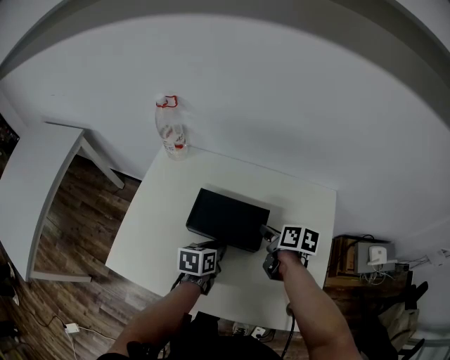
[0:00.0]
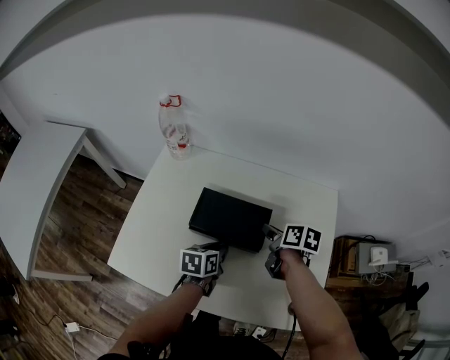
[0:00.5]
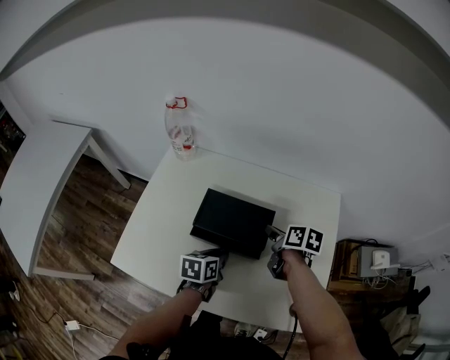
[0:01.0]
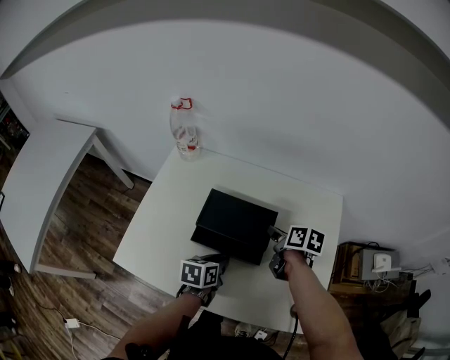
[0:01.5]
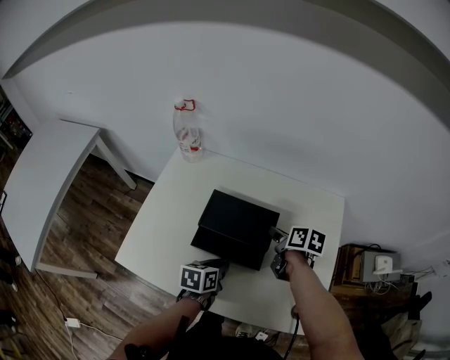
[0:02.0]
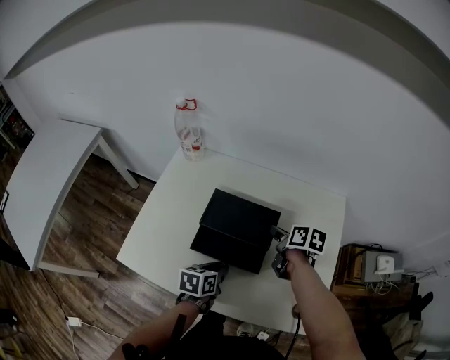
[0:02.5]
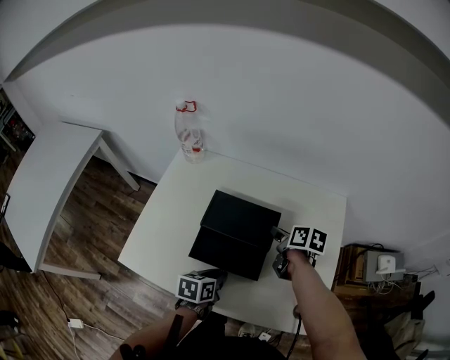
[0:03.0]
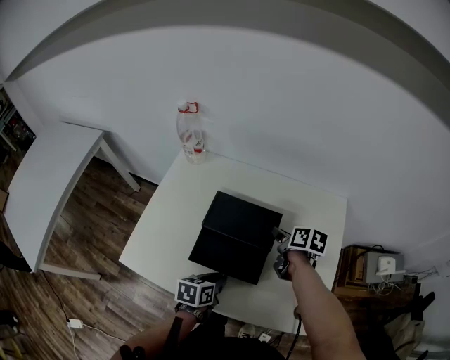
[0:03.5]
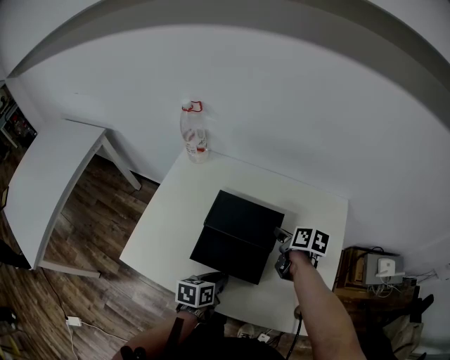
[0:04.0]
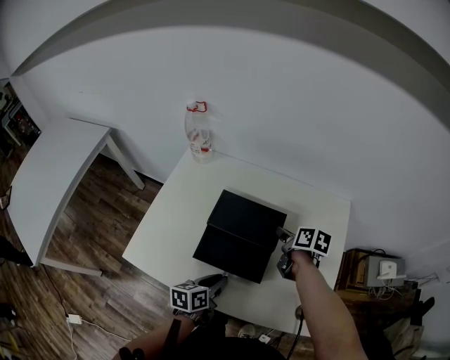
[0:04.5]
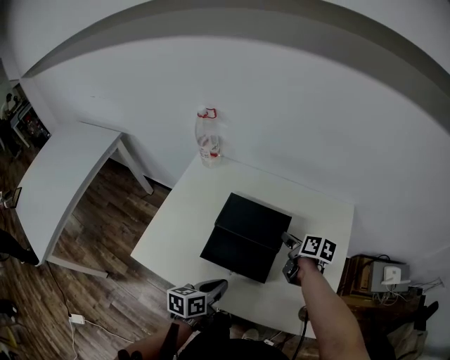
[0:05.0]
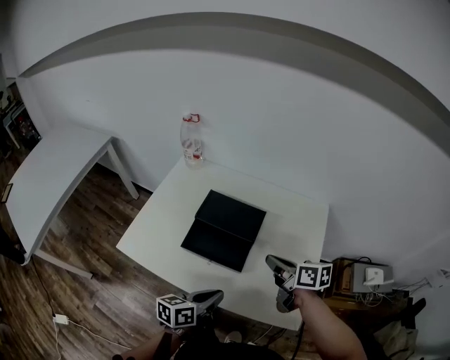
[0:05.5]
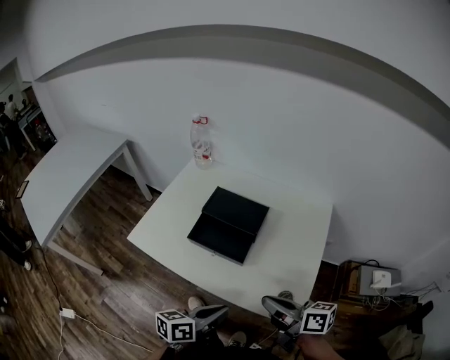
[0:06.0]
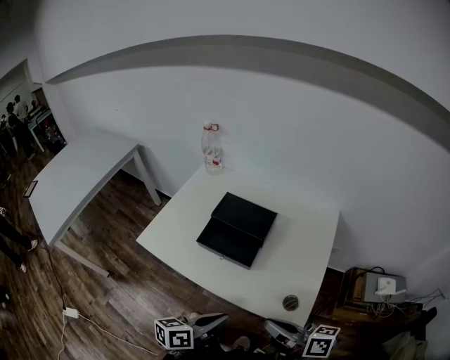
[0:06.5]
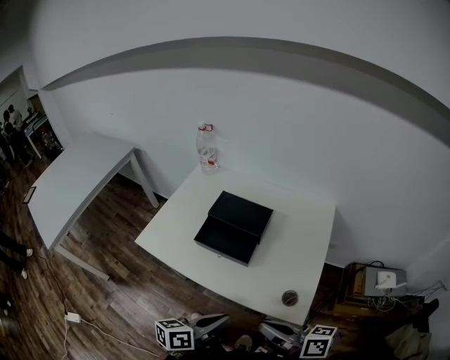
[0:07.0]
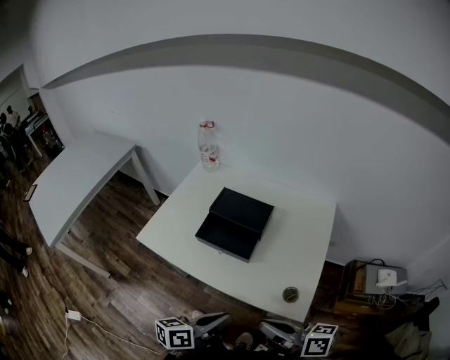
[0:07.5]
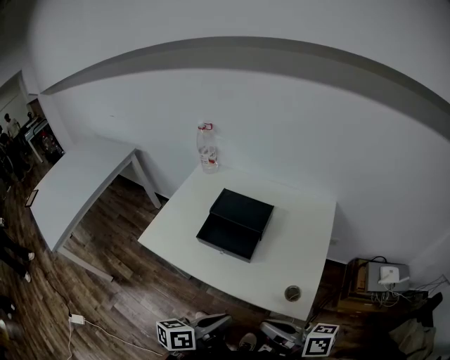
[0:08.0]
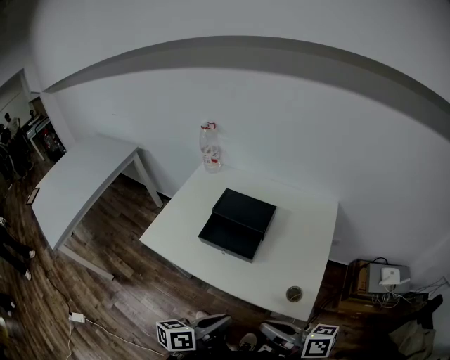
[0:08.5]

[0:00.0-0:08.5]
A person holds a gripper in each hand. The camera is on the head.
0:00.0 to 0:02.0: The left gripper shifts about 5 cm backward.
0:02.0 to 0:04.0: There are only small adjustments of the grippers.
0:04.0 to 0:06.5: The right gripper is displaced backward and upward by approximately 40 cm, tips its fingers upward by roughly 40 degrees, and closes. The left gripper is displaced backward and upward by about 25 cm, and changes its angle by some 30 degrees.
0:06.5 to 0:08.5: The grippers make only small movements.

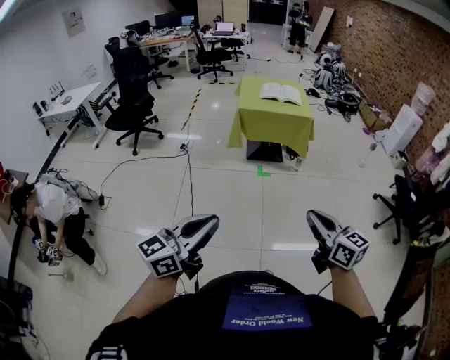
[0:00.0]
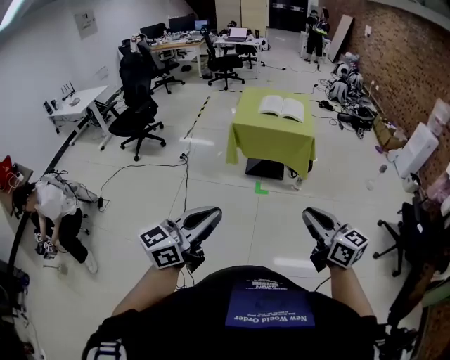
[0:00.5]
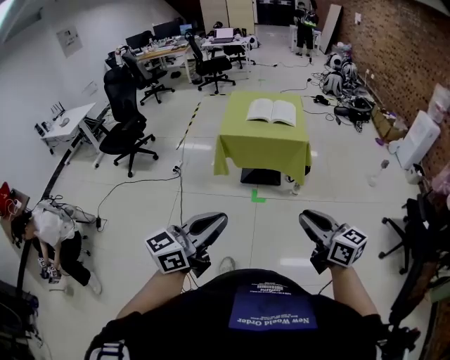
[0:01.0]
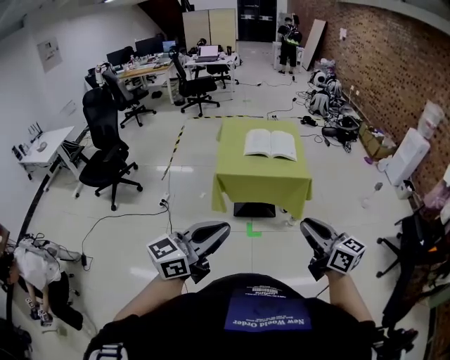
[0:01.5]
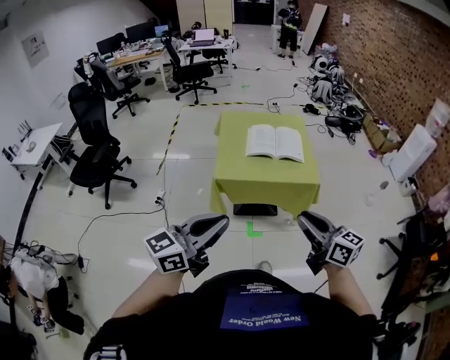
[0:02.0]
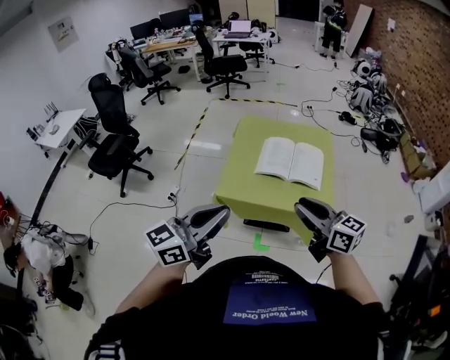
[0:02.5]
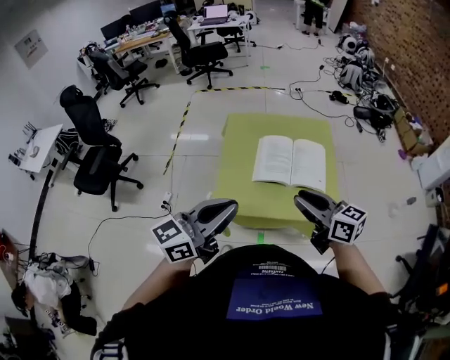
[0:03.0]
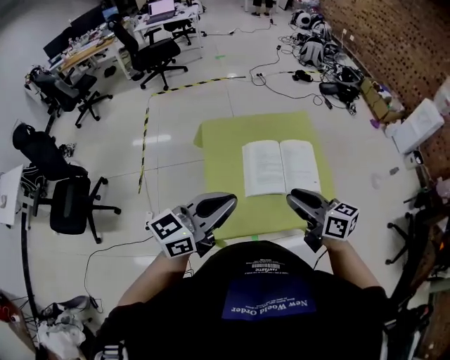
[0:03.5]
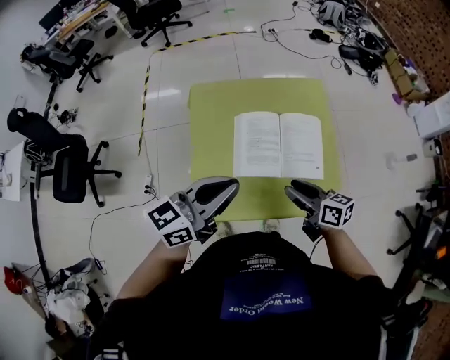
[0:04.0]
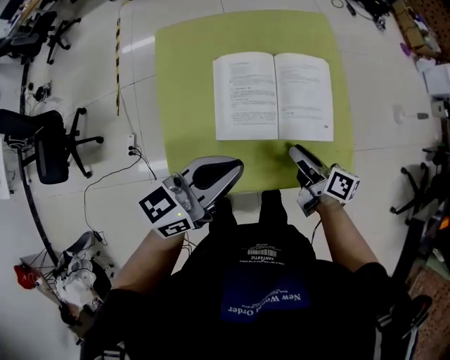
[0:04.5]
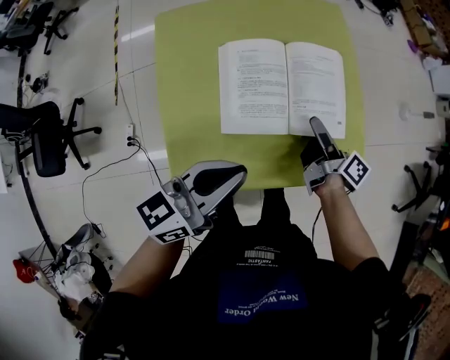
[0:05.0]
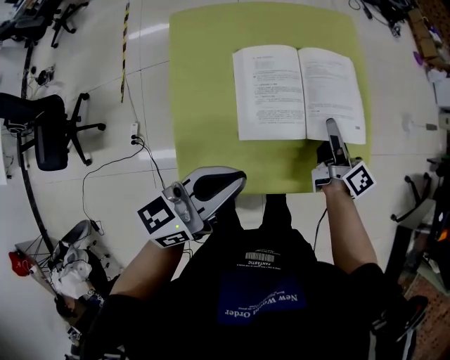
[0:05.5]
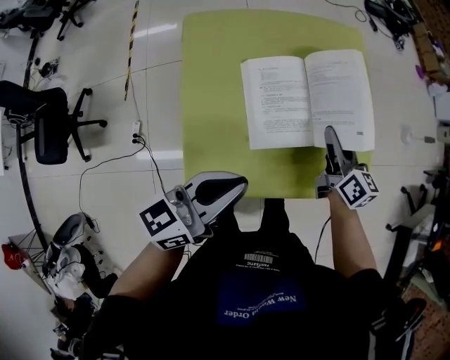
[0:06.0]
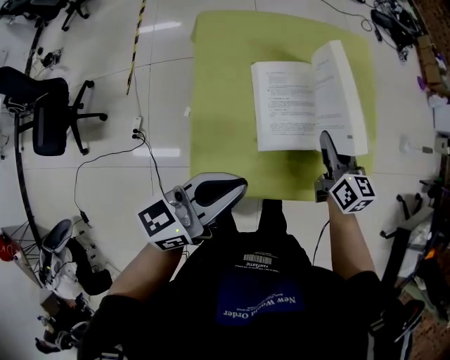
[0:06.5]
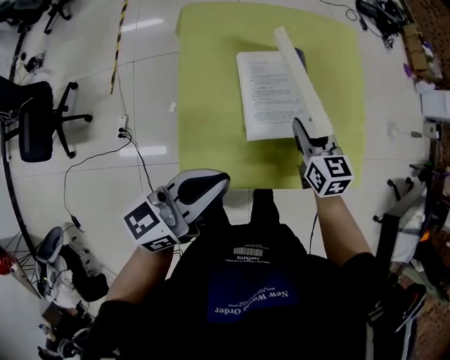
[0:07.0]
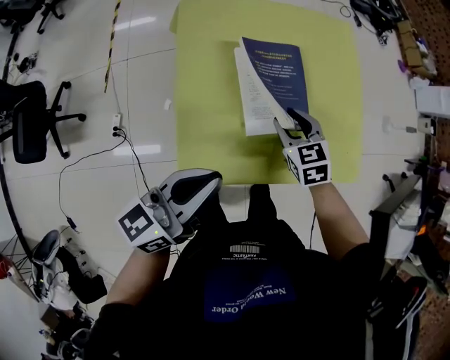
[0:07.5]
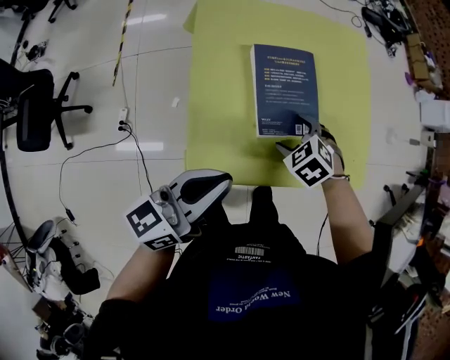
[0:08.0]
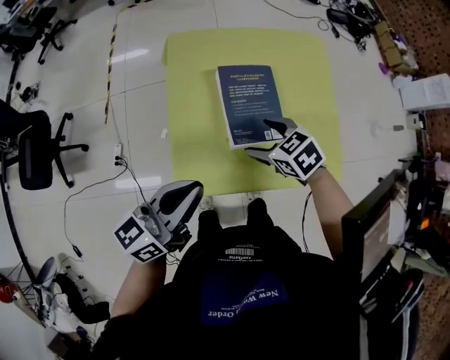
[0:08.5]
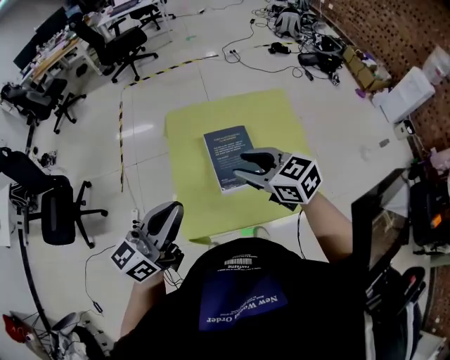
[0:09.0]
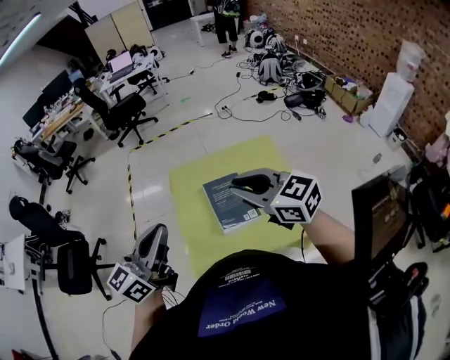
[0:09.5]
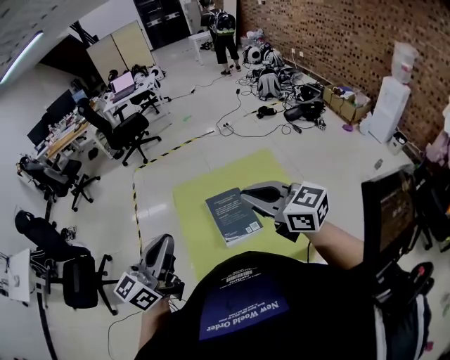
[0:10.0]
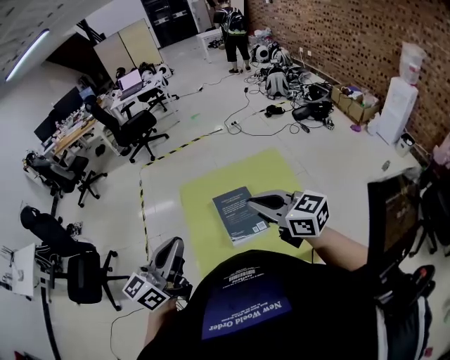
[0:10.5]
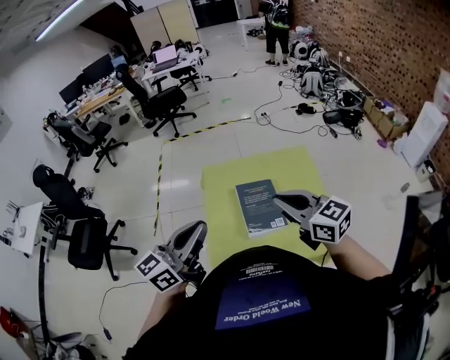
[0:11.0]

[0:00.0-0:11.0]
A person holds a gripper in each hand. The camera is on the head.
0:00.0 to 0:02.0: Both grippers are carried forward, some 60 cm.
0:02.0 to 0:03.5: The two grippers travel together, forward, roughly 40 cm.
0:03.5 to 0:05.5: The left gripper heads downward and to the right, covering about 20 cm. Meanwhile the right gripper shifts some 30 cm downward, forward and to the right, turns by roughly 40 degrees, and opens and closes again.
0:05.5 to 0:07.5: The right gripper shifts some 15 cm to the left, and rotates around the line of its fingers by about 70 degrees, counterclockwise from behind. Meanwhile the left gripper shifts about 10 cm to the left.
0:07.5 to 0:09.0: The right gripper goes about 25 cm upward, swivels roughly 30 degrees, and opens and closes again. Meanwhile the left gripper travels upward by approximately 15 cm.
0:09.0 to 0:11.0: The right gripper goes roughly 10 cm upward, and closes up.

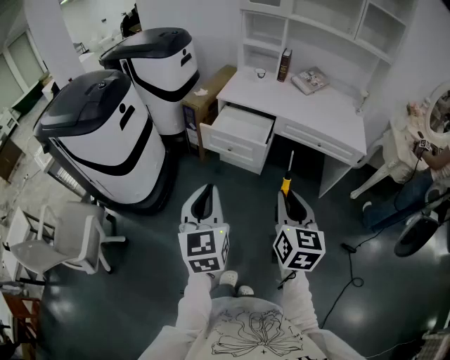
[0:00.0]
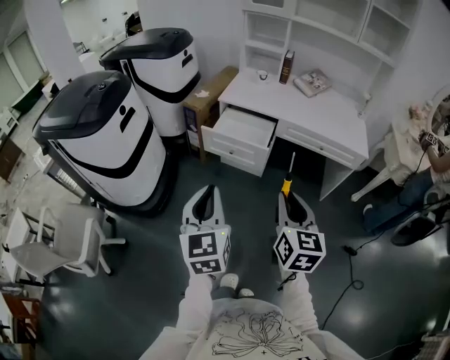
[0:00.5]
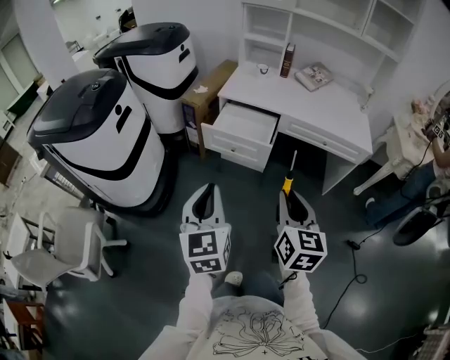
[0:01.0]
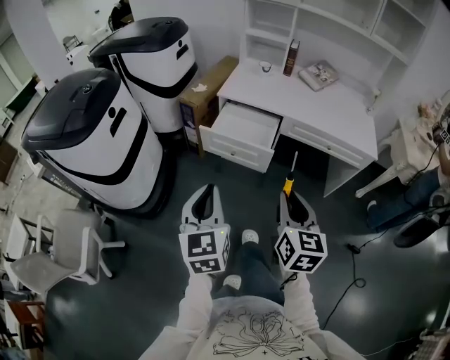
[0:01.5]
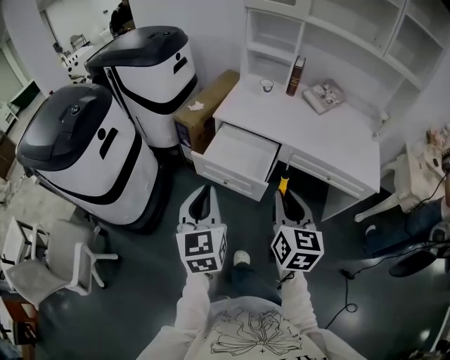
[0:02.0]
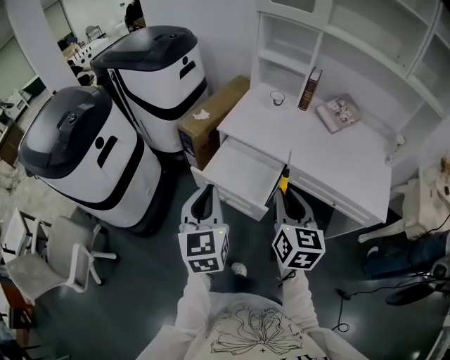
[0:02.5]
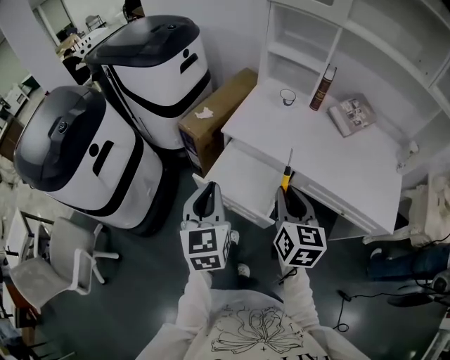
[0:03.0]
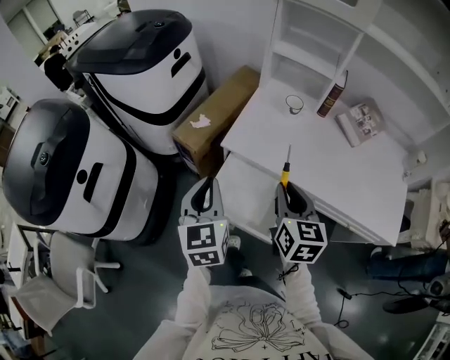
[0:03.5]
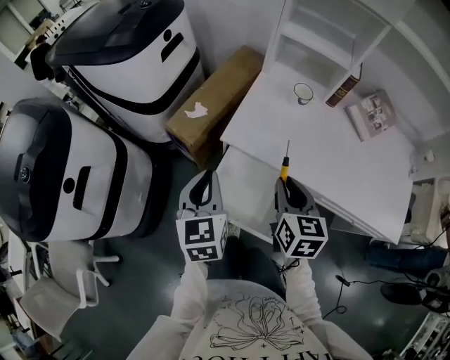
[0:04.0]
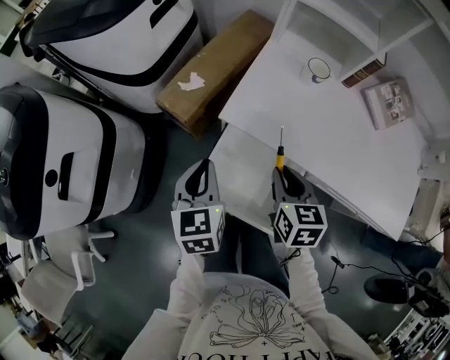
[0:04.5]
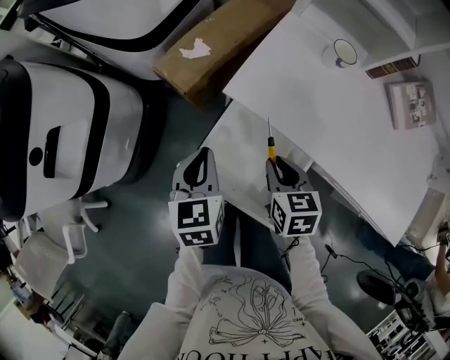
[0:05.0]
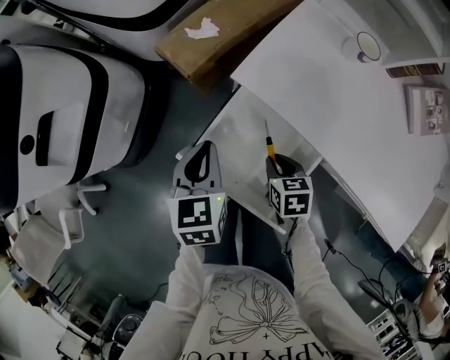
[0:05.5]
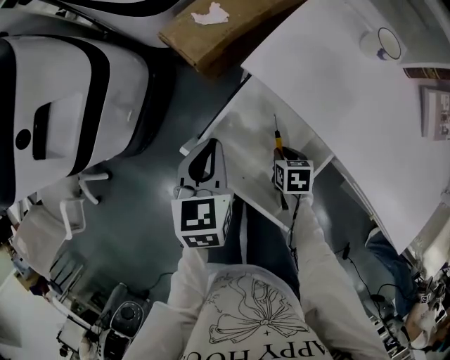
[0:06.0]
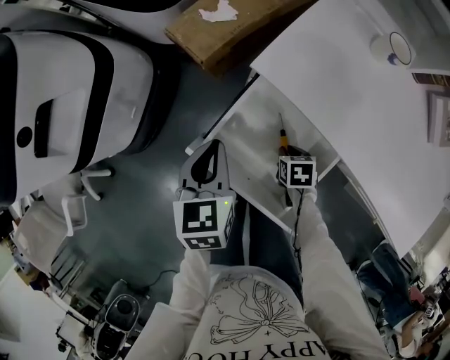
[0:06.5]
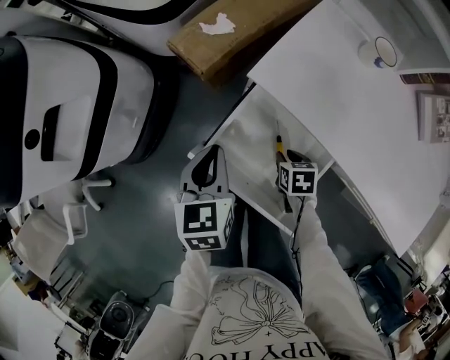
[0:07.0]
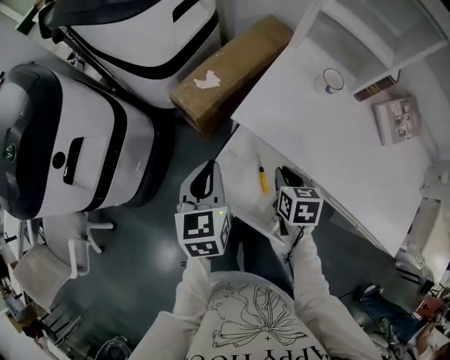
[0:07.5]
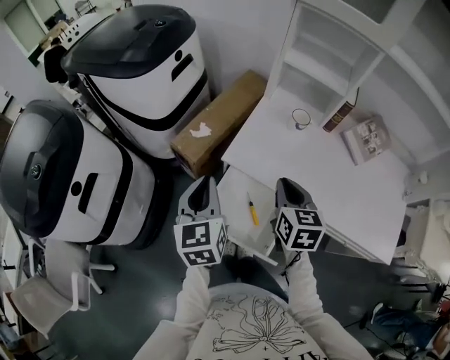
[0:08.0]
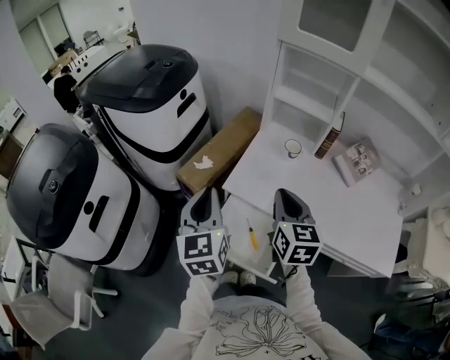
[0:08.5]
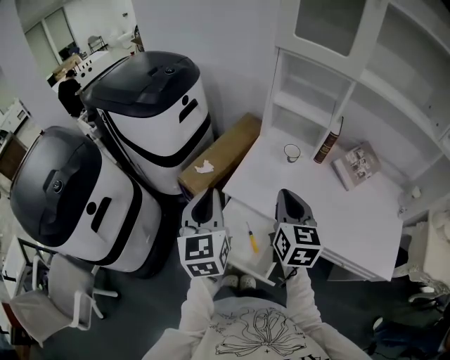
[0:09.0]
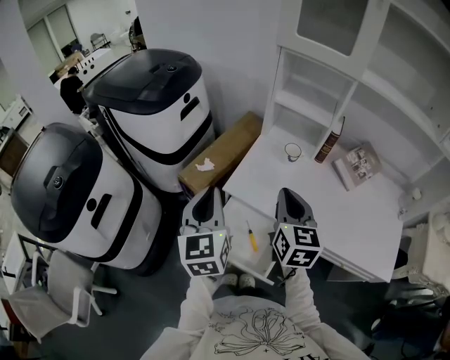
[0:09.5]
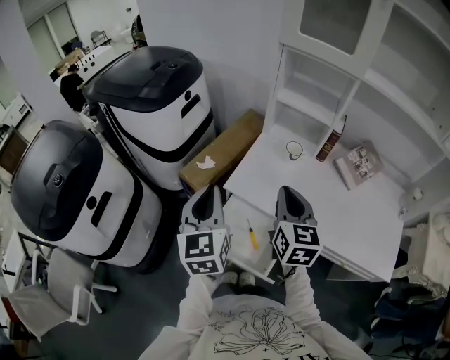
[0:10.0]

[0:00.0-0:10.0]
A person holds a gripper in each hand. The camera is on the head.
0:00.0 to 0:02.0: The two grippers go roughly 25 cm forward.
0:02.0 to 0:04.0: Both grippers travel together forward, some 40 cm.
0:04.0 to 0:06.0: The right gripper shifts about 35 cm downward, and angles its fingers downward, by roughly 40 degrees; the left gripper is displaced downward by approximately 20 cm, and changes its angle by roughly 20 degrees.
0:06.0 to 0:08.0: The left gripper moves upward, approximately 25 cm, and changes its angle by some 20 degrees. The right gripper moves upward, roughly 40 cm, and angles its fingers upward, by some 40 degrees.
0:08.0 to 0:10.0: The two grippers go approximately 10 cm upward.
